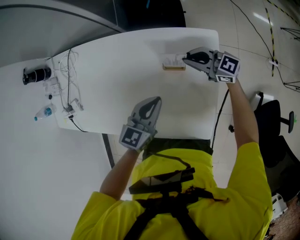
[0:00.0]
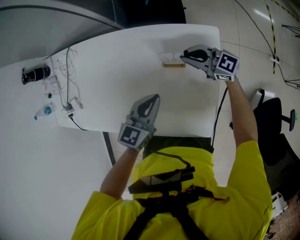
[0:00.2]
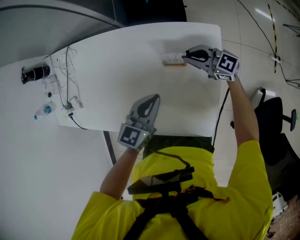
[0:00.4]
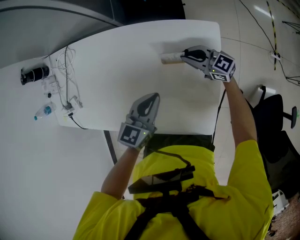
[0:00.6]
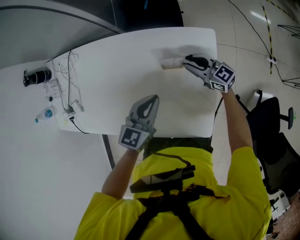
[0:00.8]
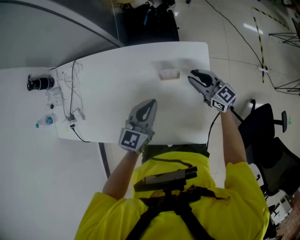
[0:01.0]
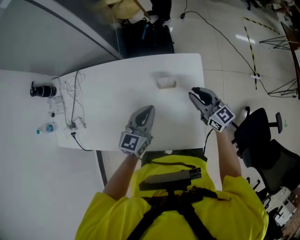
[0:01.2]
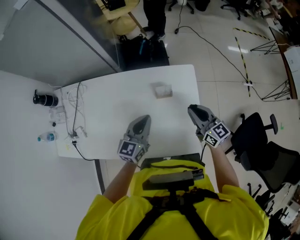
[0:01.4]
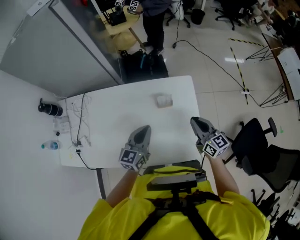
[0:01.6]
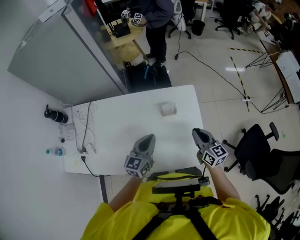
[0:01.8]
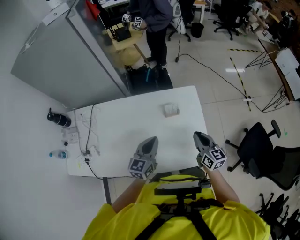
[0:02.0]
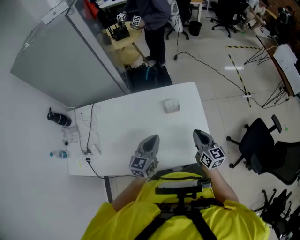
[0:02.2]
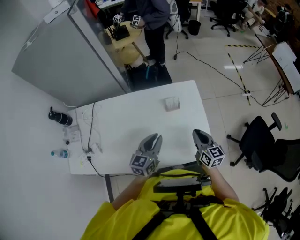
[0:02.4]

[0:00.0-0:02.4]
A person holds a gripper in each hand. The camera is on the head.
0:00.0 to 0:01.2: The right gripper travels backward and upward by roughly 15 cm, and changes its angle by roughly 40 degrees, while the left gripper heads upward, covering roughly 5 cm.
0:01.2 to 0:02.4: The left gripper goes about 10 cm backward, while the right gripper moves backward, some 15 cm, and rotates roughly 30 degrees.

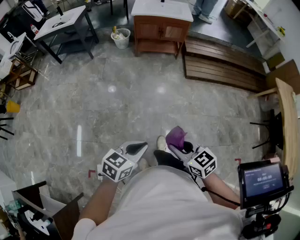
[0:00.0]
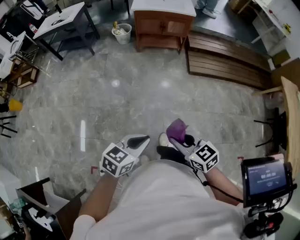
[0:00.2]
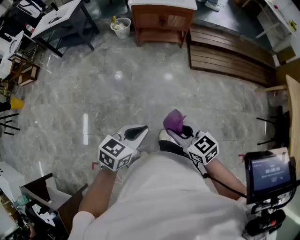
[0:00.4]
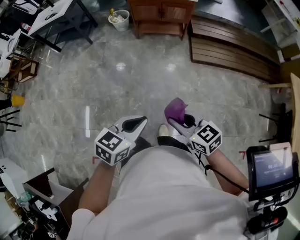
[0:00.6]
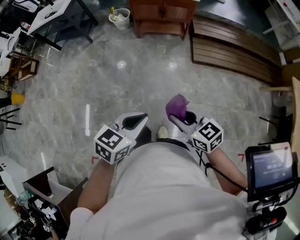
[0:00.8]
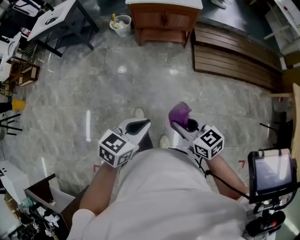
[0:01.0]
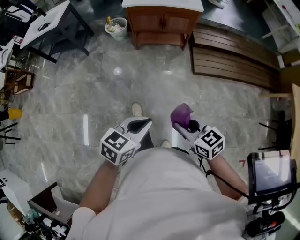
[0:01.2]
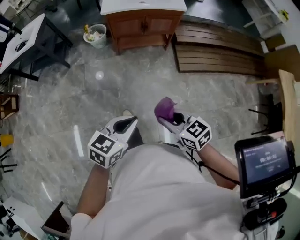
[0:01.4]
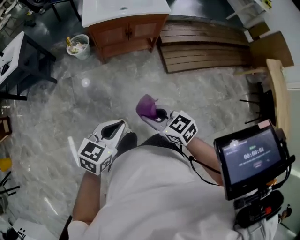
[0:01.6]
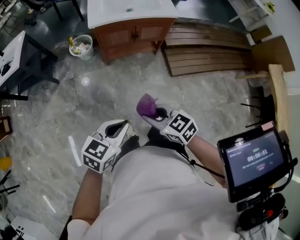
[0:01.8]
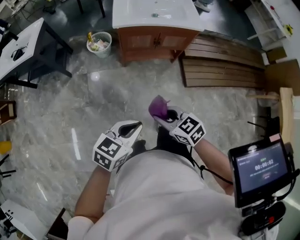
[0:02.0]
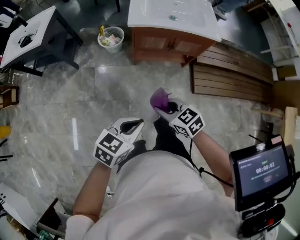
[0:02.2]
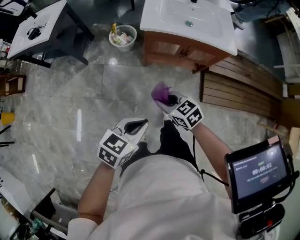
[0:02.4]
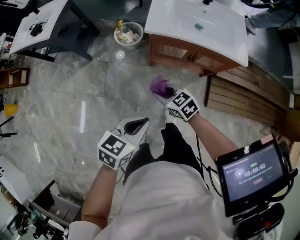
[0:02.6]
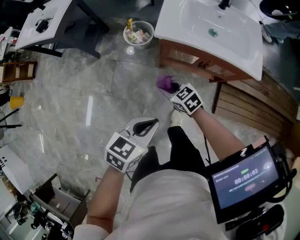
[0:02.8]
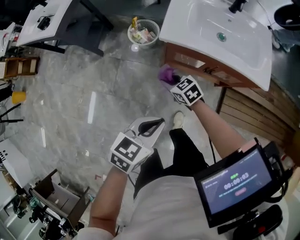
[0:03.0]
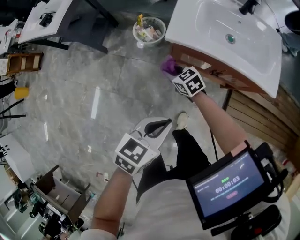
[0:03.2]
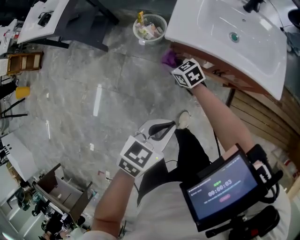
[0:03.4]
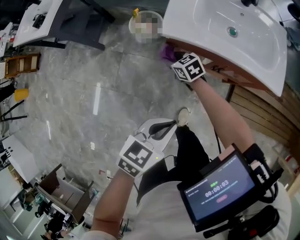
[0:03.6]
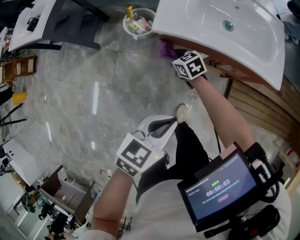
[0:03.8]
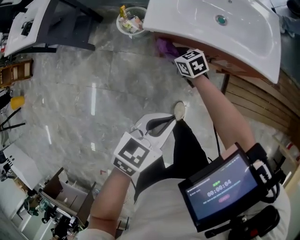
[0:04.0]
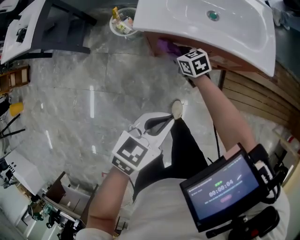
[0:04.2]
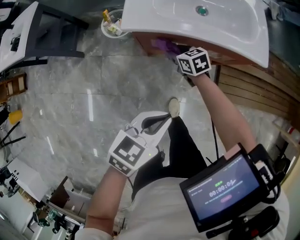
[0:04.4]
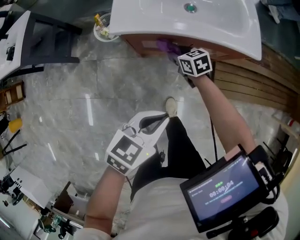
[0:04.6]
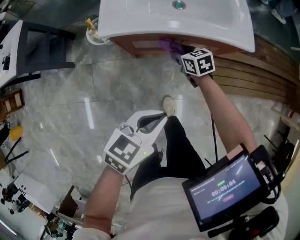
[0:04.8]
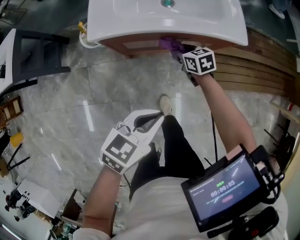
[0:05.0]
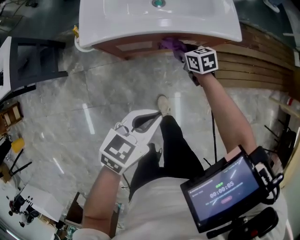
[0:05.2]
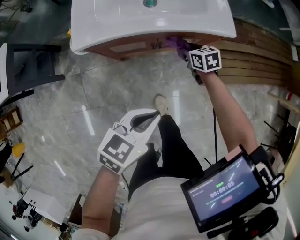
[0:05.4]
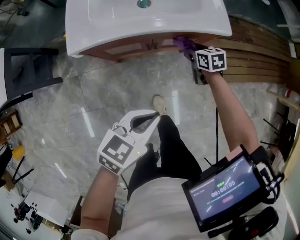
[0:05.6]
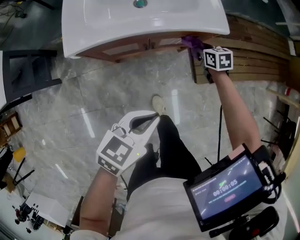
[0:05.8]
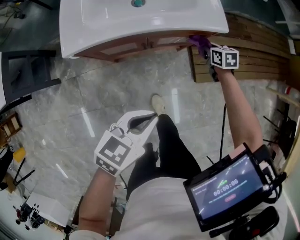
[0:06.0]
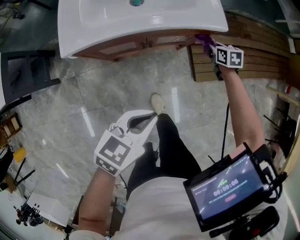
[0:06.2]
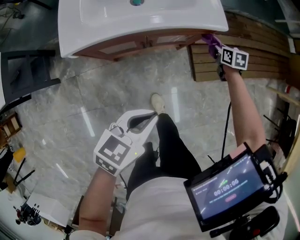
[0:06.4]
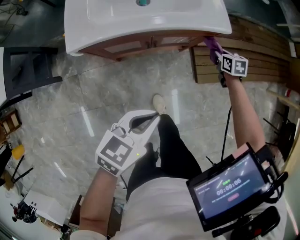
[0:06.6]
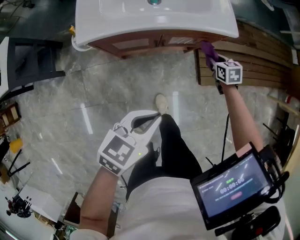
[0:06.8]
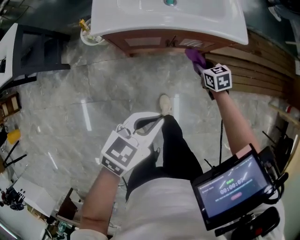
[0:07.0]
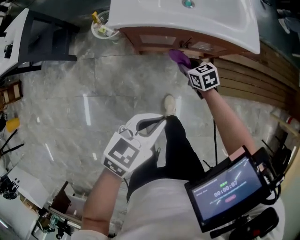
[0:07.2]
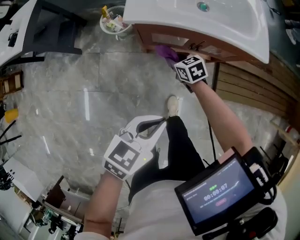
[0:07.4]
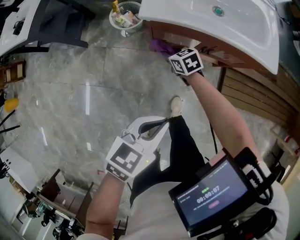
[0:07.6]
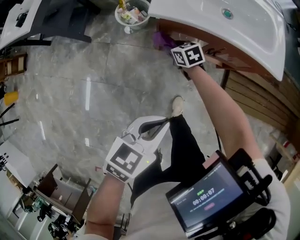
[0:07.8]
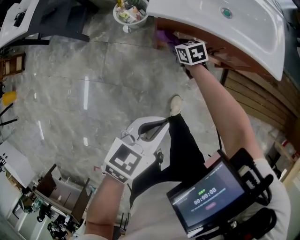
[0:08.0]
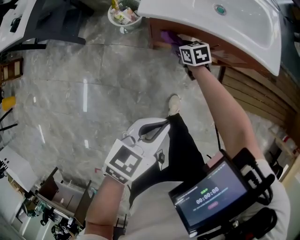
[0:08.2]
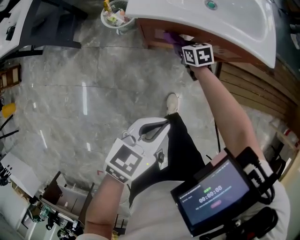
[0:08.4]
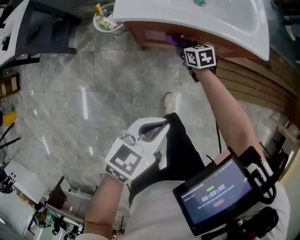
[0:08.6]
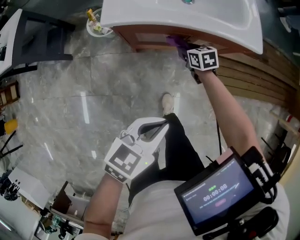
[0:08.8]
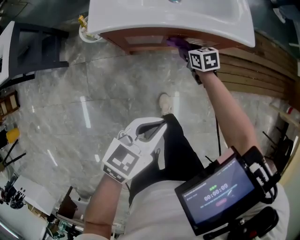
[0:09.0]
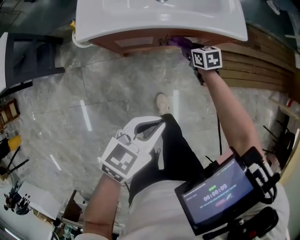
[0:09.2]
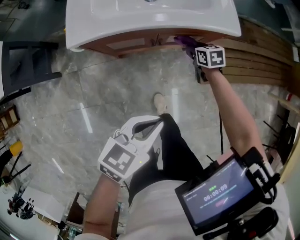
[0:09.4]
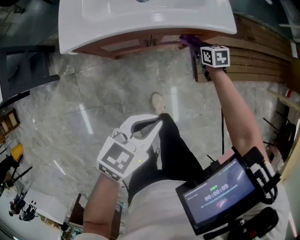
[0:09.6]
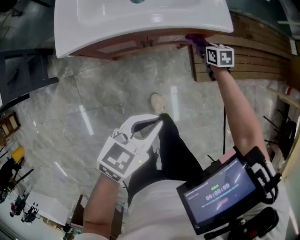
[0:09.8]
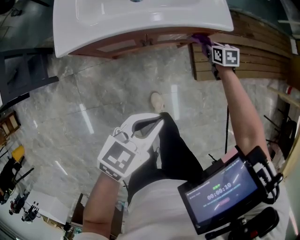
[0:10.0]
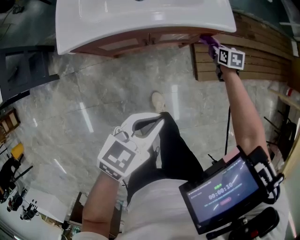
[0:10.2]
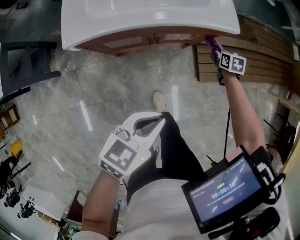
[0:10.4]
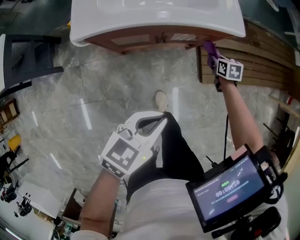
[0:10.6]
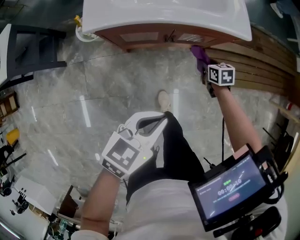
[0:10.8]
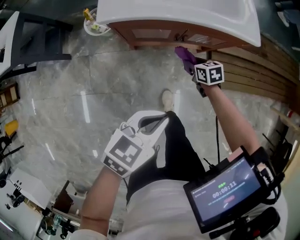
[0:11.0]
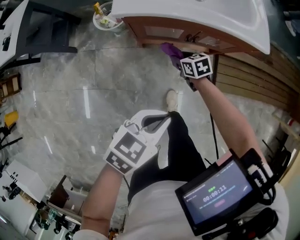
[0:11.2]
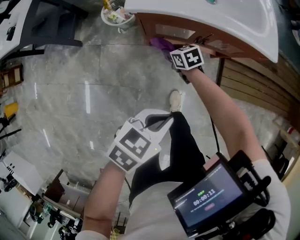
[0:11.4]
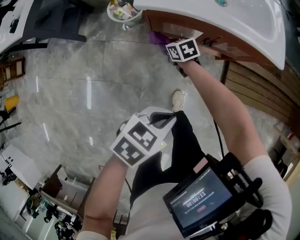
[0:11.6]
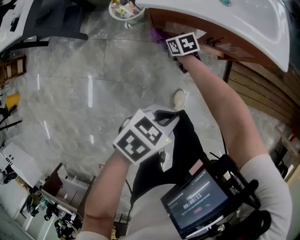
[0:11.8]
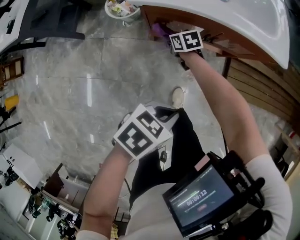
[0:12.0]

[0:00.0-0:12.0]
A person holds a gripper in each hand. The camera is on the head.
0:00.0 to 0:01.6: The pair of grippers is taken forward, about 50 cm.
0:01.6 to 0:03.0: Both grippers are carried forward, about 50 cm. The left gripper turns by some 20 degrees. The right gripper heads downward, covering roughly 25 cm, and changes its angle by about 30 degrees.
0:03.0 to 0:04.4: The left gripper goes roughly 10 cm to the right, while the right gripper moves to the right, forward and downward, about 20 cm, and rotates roughly 20 degrees.
0:04.4 to 0:06.0: The right gripper shifts by some 40 cm, and rotates some 30 degrees; the left gripper moves some 10 cm.
0:06.0 to 0:07.6: The left gripper moves some 15 cm, and rotates approximately 20 degrees, while the right gripper changes place by about 50 cm, and rotates roughly 40 degrees.
0:07.6 to 0:09.0: The right gripper heads to the right, covering roughly 25 cm, and changes its angle by approximately 20 degrees; the left gripper is displaced to the right by about 10 cm.
0:09.0 to 0:10.4: The left gripper travels to the right and forward by some 10 cm; the right gripper goes roughly 25 cm to the right, and turns by roughly 30 degrees.
0:10.4 to 0:12.0: The left gripper shifts by approximately 15 cm, and turns by some 20 degrees. The right gripper shifts by roughly 50 cm, and swivels some 40 degrees.

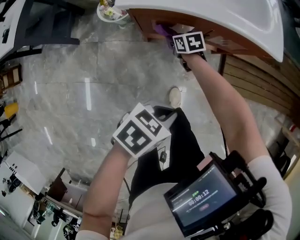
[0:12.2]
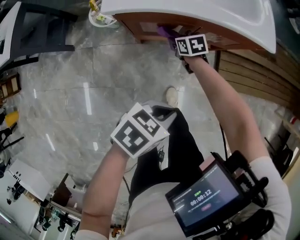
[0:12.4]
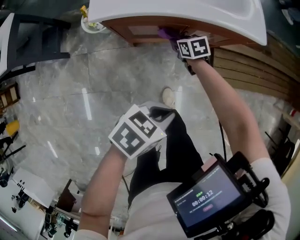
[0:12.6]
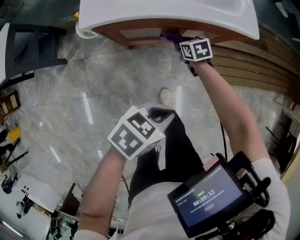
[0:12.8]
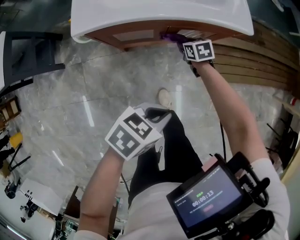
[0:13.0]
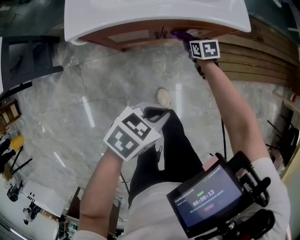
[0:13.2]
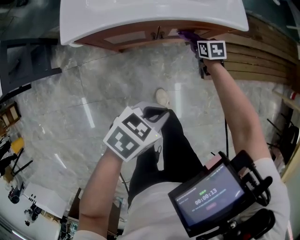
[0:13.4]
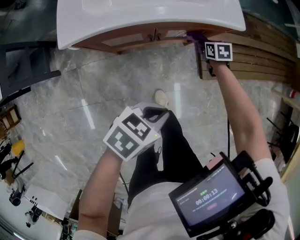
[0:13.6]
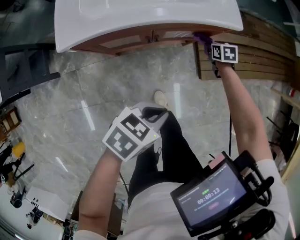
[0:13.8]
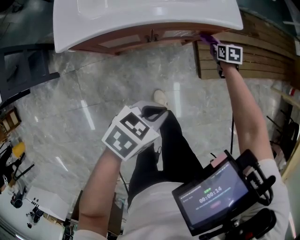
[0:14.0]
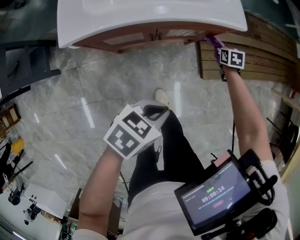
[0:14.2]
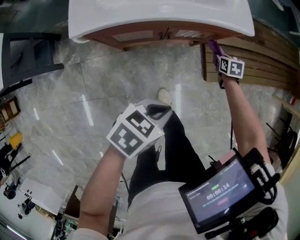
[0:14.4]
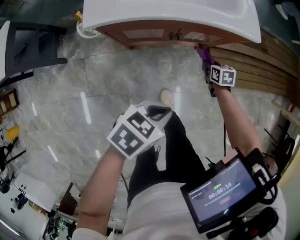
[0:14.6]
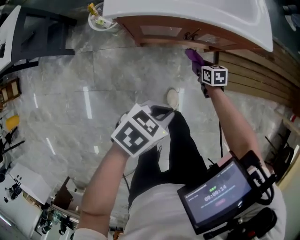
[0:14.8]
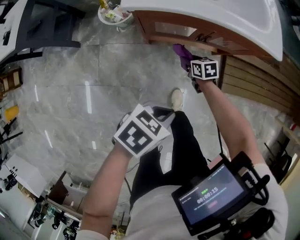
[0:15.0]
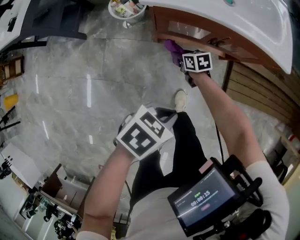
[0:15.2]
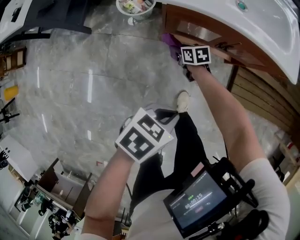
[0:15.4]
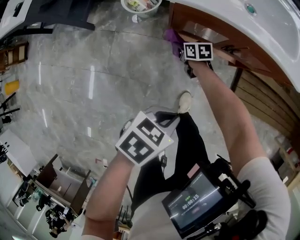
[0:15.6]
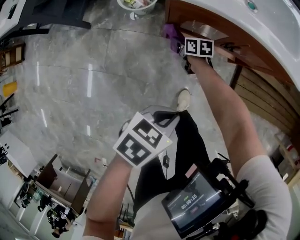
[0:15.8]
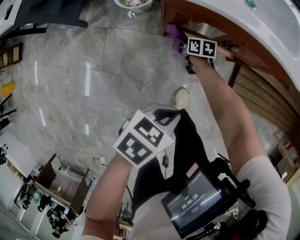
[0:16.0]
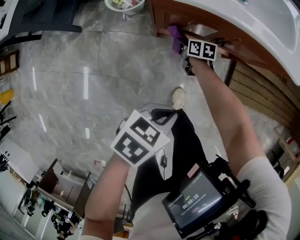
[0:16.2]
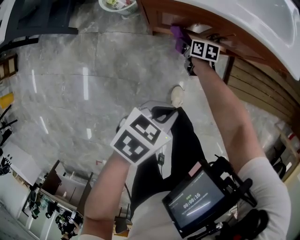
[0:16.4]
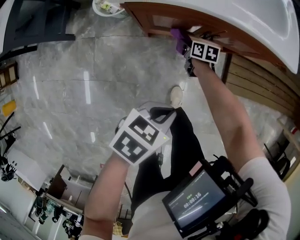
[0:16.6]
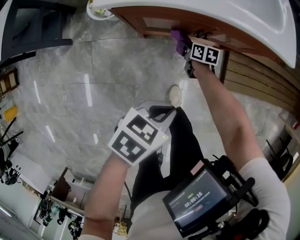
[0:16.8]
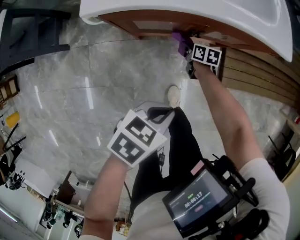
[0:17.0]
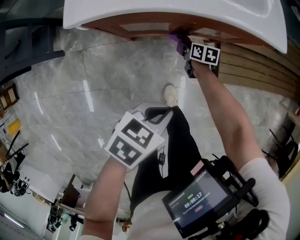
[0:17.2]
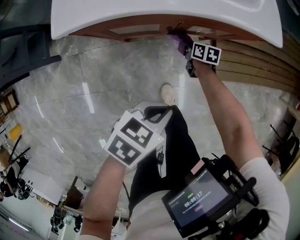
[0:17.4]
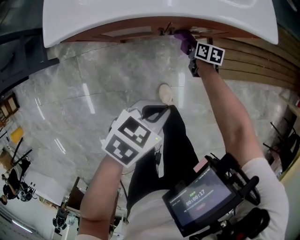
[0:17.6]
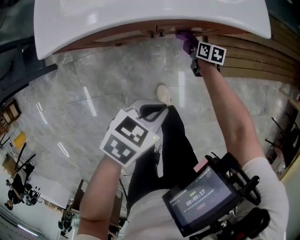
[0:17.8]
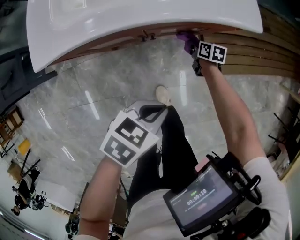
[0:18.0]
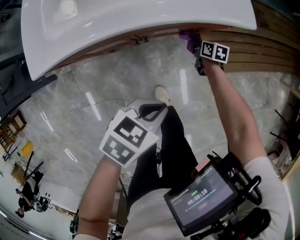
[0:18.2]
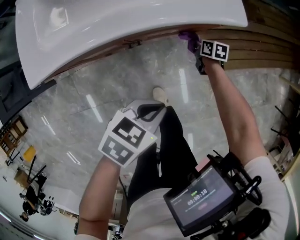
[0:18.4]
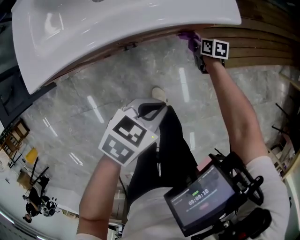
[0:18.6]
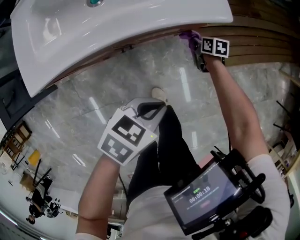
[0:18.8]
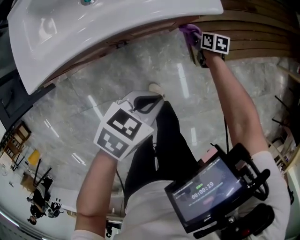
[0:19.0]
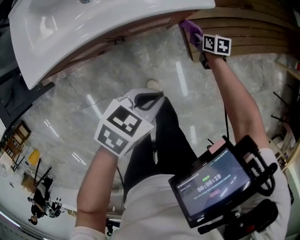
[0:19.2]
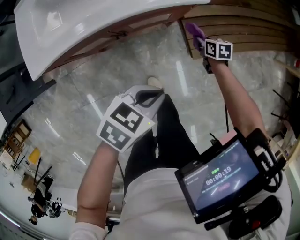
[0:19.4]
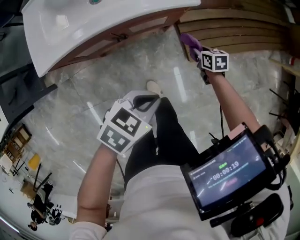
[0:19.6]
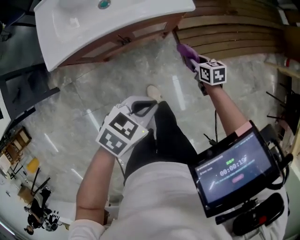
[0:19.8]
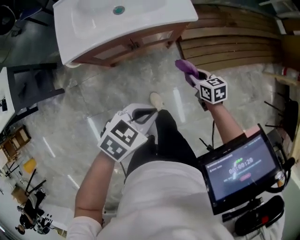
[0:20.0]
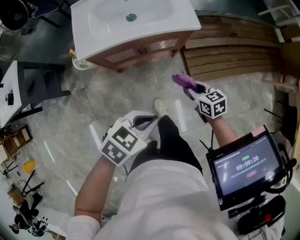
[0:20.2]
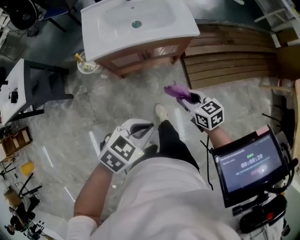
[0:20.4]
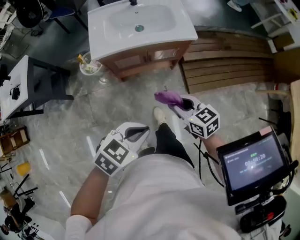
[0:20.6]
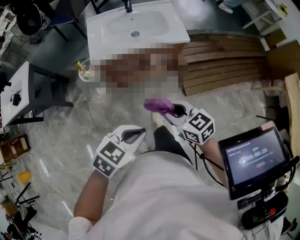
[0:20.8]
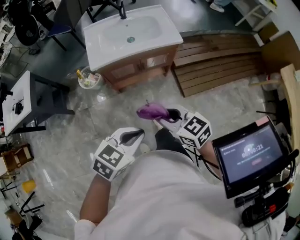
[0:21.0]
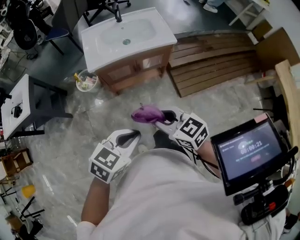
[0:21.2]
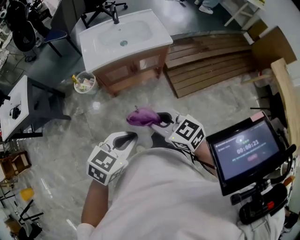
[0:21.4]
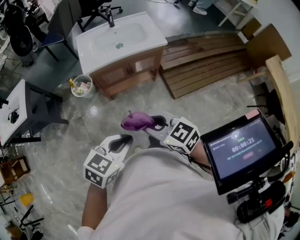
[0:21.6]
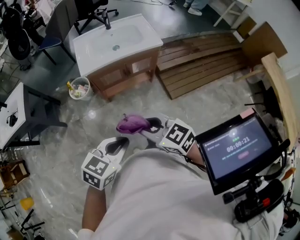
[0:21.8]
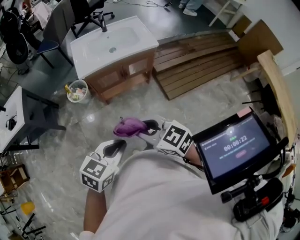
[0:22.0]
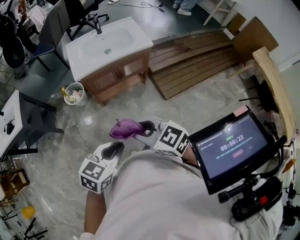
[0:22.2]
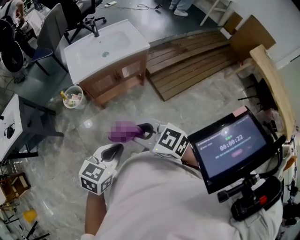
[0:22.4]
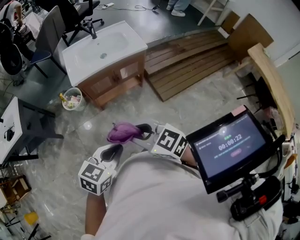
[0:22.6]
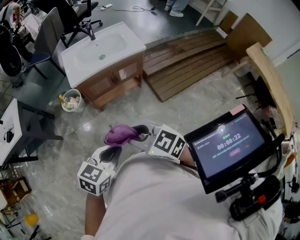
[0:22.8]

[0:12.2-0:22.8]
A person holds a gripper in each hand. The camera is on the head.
0:12.2 to 0:13.8: The right gripper ends up about 40 cm from where it was, and turns by roughly 30 degrees. The left gripper moves about 15 cm.
0:13.8 to 0:15.2: The right gripper moves some 50 cm, and rotates about 30 degrees, while the left gripper changes place by about 15 cm.
0:15.2 to 0:16.8: The left gripper ends up some 10 cm from where it was, while the right gripper moves roughly 15 cm, and swivels approximately 30 degrees.
0:16.8 to 0:18.2: The right gripper shifts some 30 cm to the right and forward. Meanwhile the left gripper heads to the right and forward, covering roughly 20 cm.
0:18.2 to 0:19.8: The right gripper goes some 30 cm upward, backward and to the right. The left gripper heads upward, backward and to the right, covering about 15 cm.
0:19.8 to 0:21.2: The left gripper moves backward and upward, some 35 cm; the right gripper is displaced upward, backward and to the left by approximately 60 cm, and rotates roughly 40 degrees.
0:21.2 to 0:22.8: The right gripper is displaced backward and upward by about 10 cm. The left gripper shifts approximately 10 cm backward.
